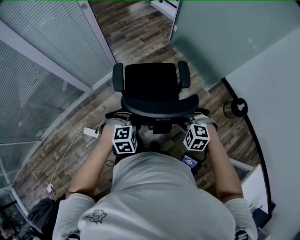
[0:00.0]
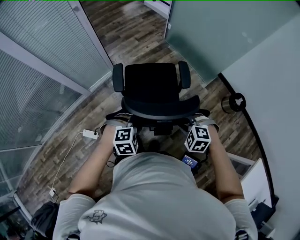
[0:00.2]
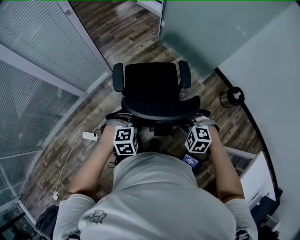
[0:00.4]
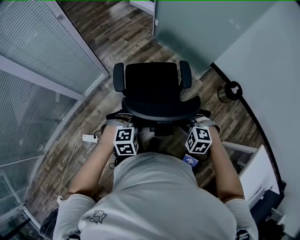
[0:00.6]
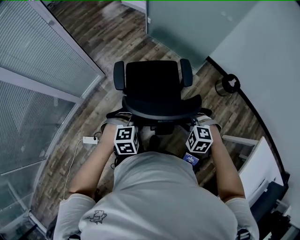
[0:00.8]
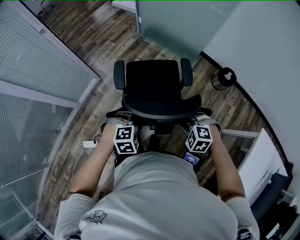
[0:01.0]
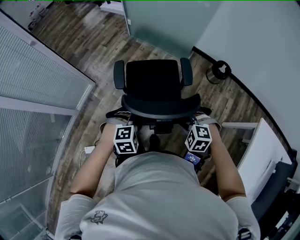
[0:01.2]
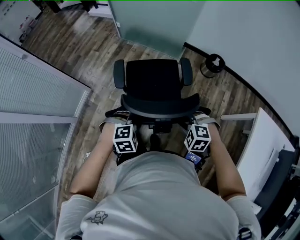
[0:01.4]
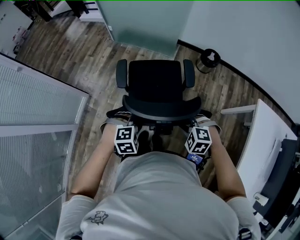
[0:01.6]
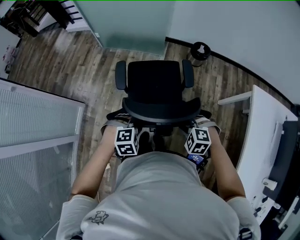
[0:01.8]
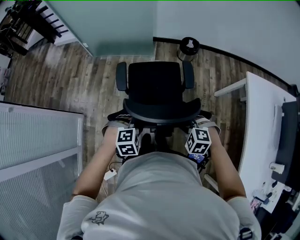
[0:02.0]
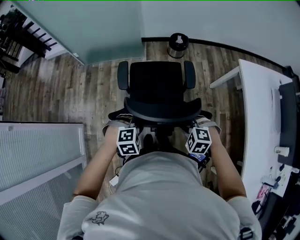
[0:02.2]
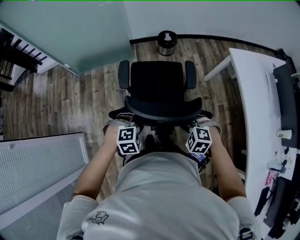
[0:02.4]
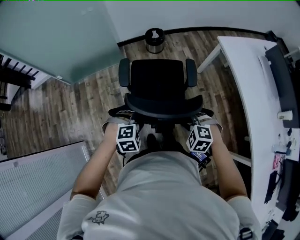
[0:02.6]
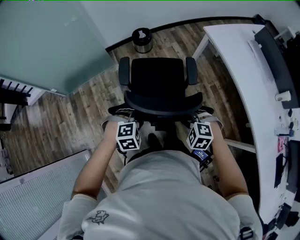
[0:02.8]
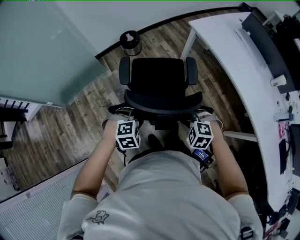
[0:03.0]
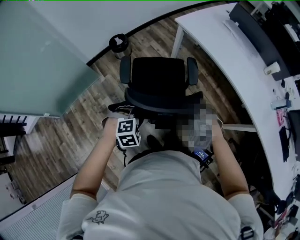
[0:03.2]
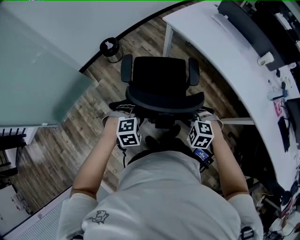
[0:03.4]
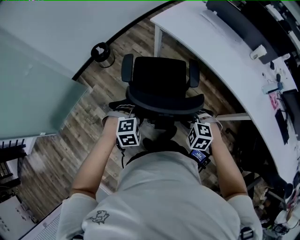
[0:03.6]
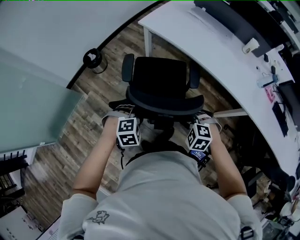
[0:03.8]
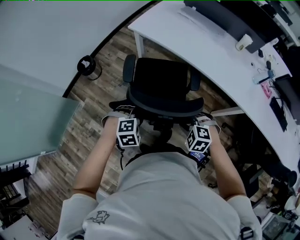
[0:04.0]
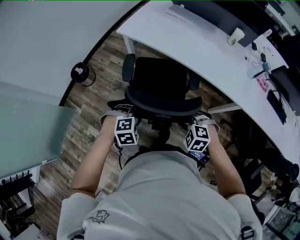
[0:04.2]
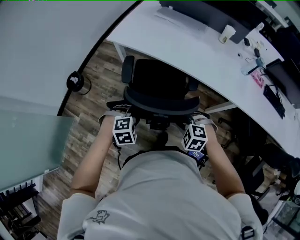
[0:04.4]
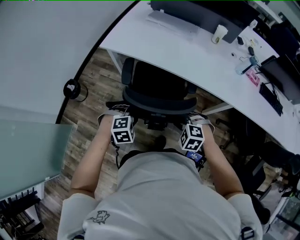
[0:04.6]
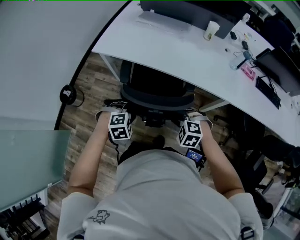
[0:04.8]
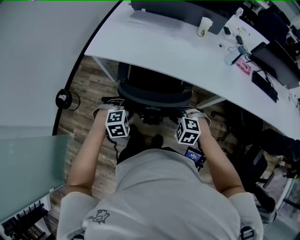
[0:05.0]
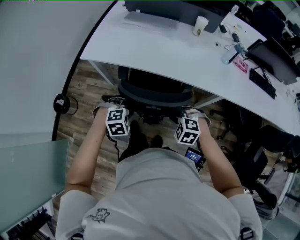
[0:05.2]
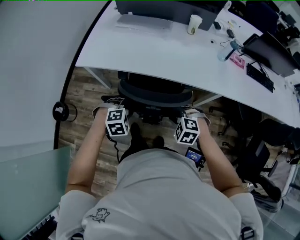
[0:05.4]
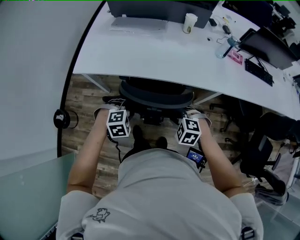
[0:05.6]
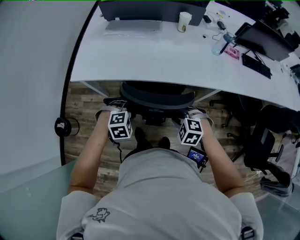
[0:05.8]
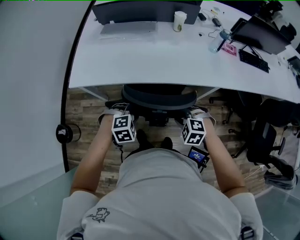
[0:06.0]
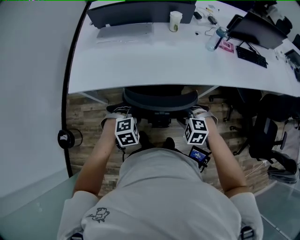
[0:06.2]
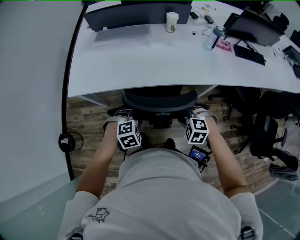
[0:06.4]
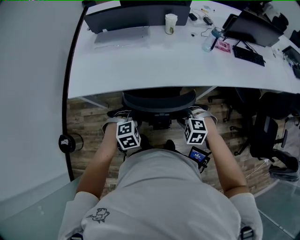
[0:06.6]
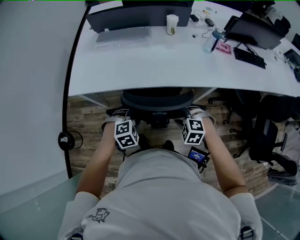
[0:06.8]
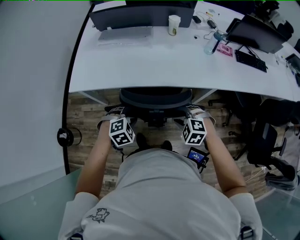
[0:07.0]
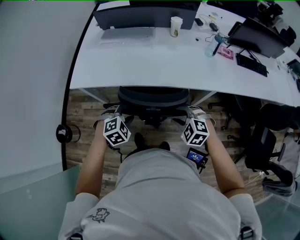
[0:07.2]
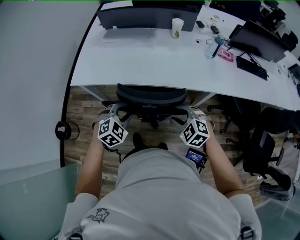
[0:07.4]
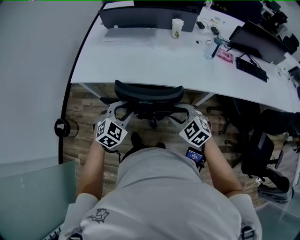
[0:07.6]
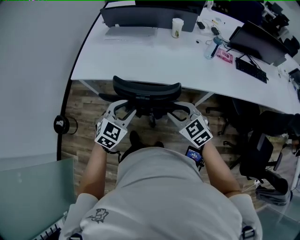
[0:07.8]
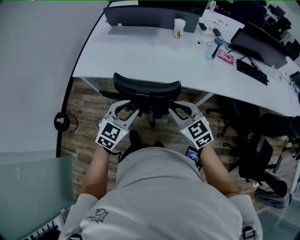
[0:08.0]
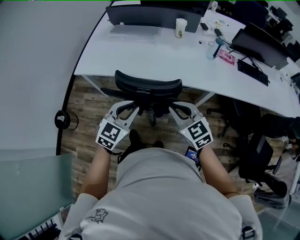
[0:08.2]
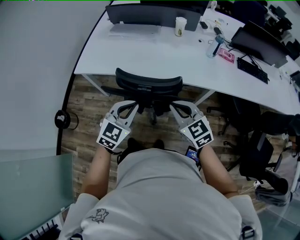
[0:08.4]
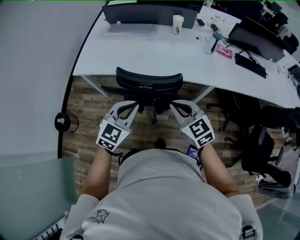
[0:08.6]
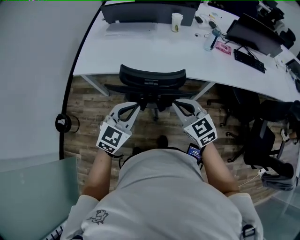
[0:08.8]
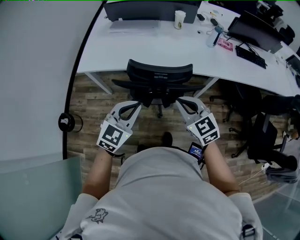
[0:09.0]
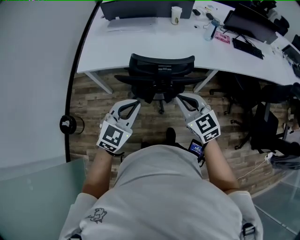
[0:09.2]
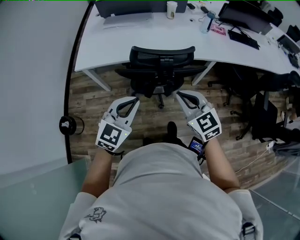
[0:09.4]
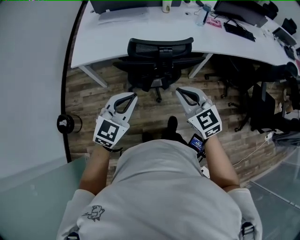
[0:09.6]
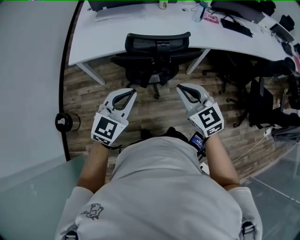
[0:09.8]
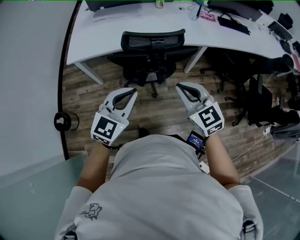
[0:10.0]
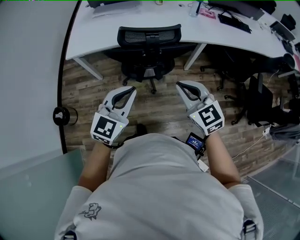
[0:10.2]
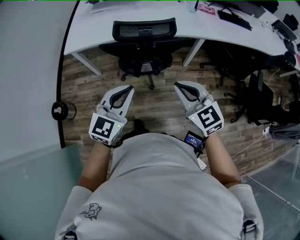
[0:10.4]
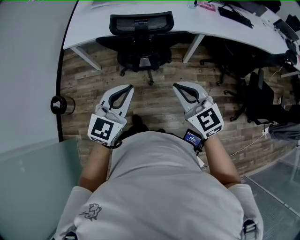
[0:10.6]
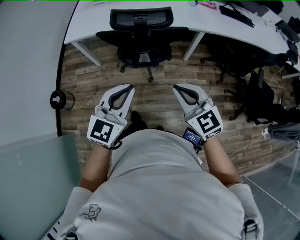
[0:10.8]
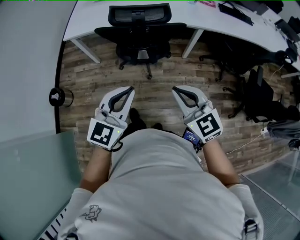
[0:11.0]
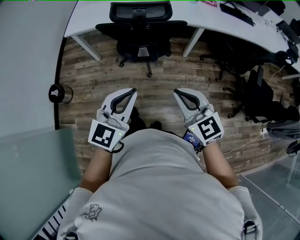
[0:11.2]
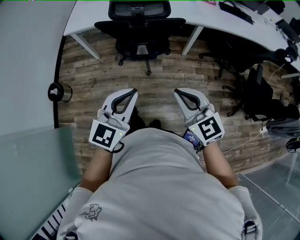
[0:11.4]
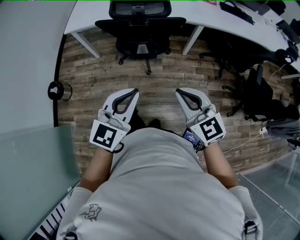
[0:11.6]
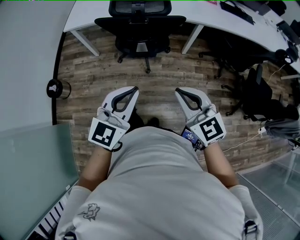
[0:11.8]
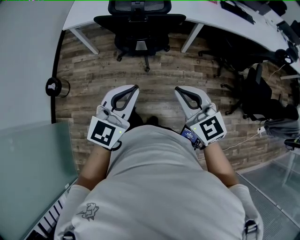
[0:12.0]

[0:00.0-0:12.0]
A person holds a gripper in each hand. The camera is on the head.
0:00.0 to 0:01.6: The left gripper shifts by some 15 cm, and swivels some 30 degrees, while the right gripper ends up approximately 20 cm from where it was, and swivels about 30 degrees.
0:01.6 to 0:03.0: The right gripper changes place by approximately 20 cm, and twists some 50 degrees clockwise, seen from behind, while the left gripper shifts by some 15 cm, and rolls clockwise, seen from behind, by approximately 50 degrees.
0:03.0 to 0:04.4: The left gripper changes place by approximately 35 cm, and turns by approximately 30 degrees. Meanwhile the right gripper shifts by about 30 cm, and swivels roughly 30 degrees.
0:04.4 to 0:06.0: The right gripper ends up approximately 15 cm from where it was, and changes its angle by about 20 degrees. The left gripper changes place by some 20 cm, and changes its angle by roughly 20 degrees.
0:06.0 to 0:07.6: Both grippers move upward and to the right, approximately 10 cm. The left gripper changes its angle by some 40 degrees; the right gripper changes its angle by some 30 degrees.
0:07.6 to 0:09.0: The right gripper heads upward, backward and to the left, covering approximately 15 cm, changes its angle by roughly 20 degrees, and closes up. The left gripper moves backward and upward, about 15 cm, changes its angle by roughly 20 degrees, and closes.
0:09.0 to 0:10.4: Both grippers move backward, about 20 cm.
0:10.4 to 0:12.0: The right gripper is displaced backward by some 15 cm. The left gripper goes some 15 cm backward and to the right.

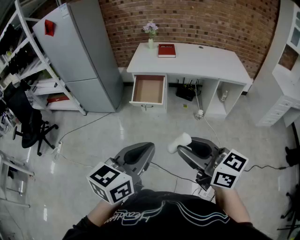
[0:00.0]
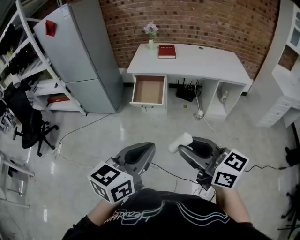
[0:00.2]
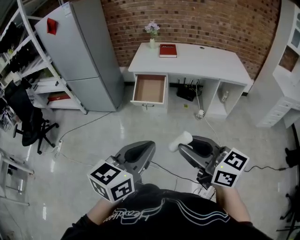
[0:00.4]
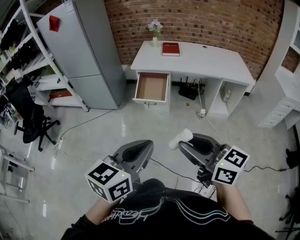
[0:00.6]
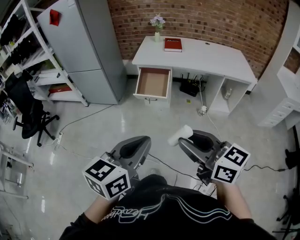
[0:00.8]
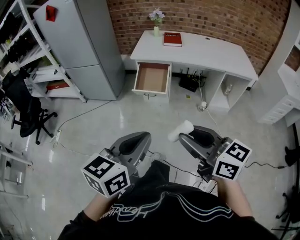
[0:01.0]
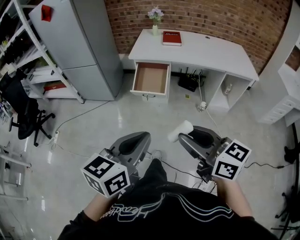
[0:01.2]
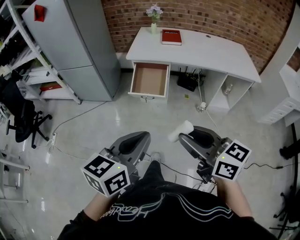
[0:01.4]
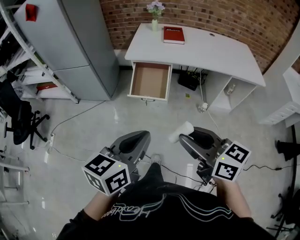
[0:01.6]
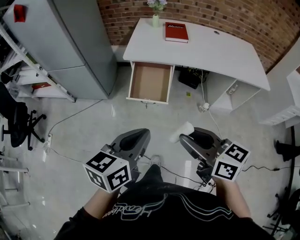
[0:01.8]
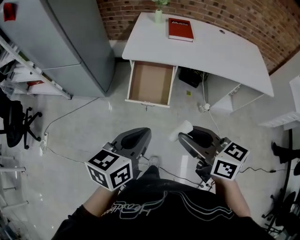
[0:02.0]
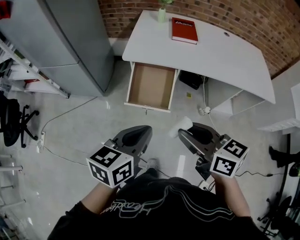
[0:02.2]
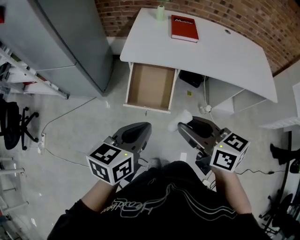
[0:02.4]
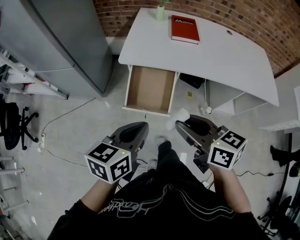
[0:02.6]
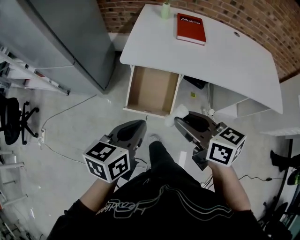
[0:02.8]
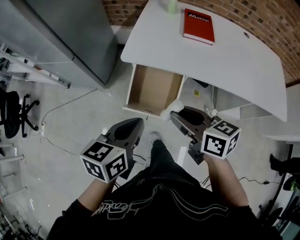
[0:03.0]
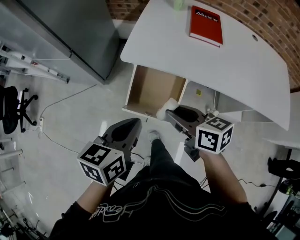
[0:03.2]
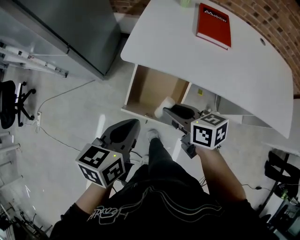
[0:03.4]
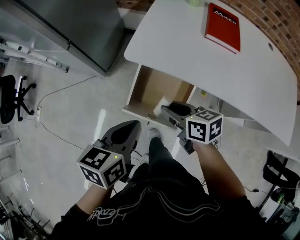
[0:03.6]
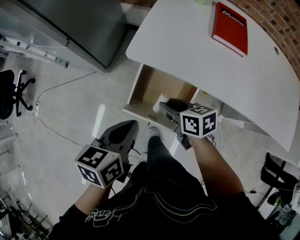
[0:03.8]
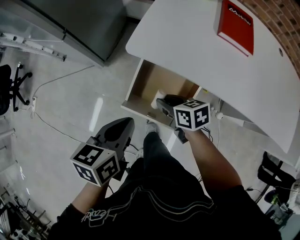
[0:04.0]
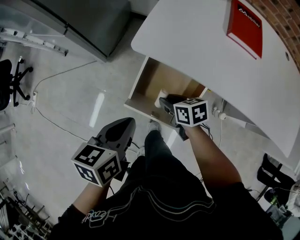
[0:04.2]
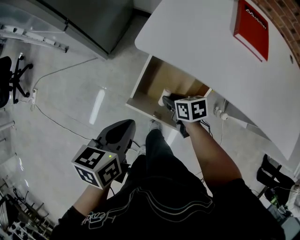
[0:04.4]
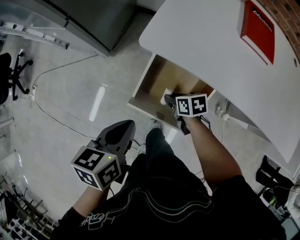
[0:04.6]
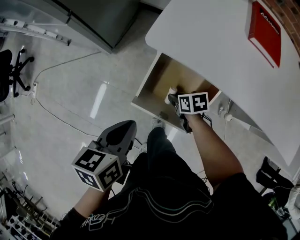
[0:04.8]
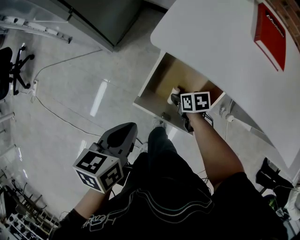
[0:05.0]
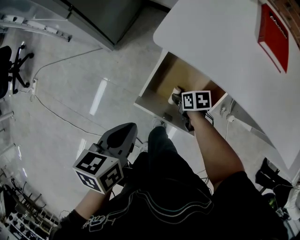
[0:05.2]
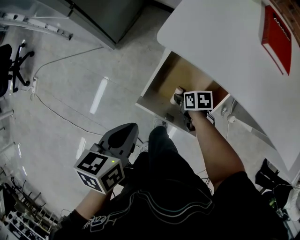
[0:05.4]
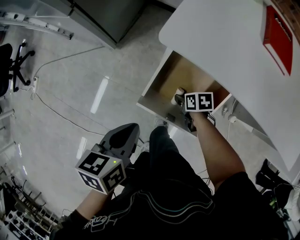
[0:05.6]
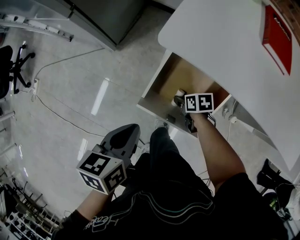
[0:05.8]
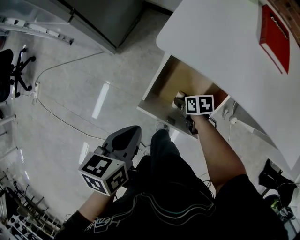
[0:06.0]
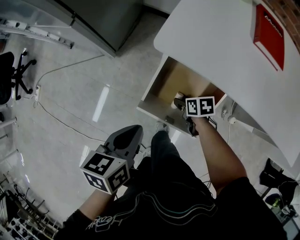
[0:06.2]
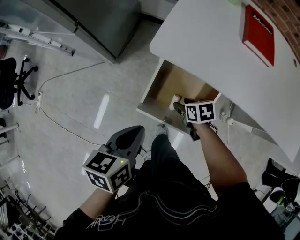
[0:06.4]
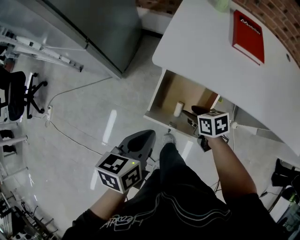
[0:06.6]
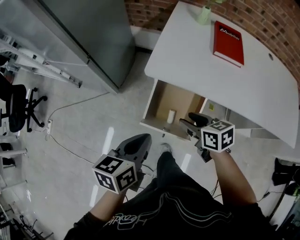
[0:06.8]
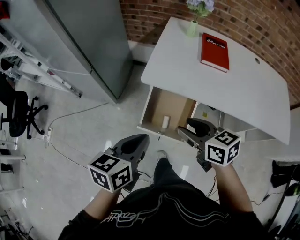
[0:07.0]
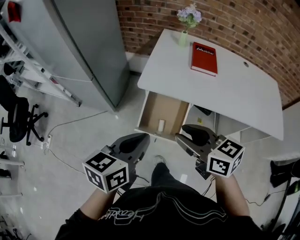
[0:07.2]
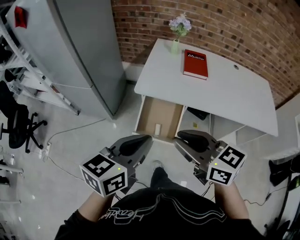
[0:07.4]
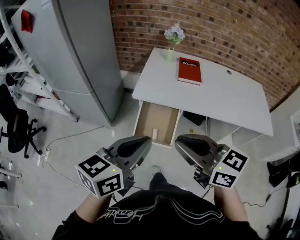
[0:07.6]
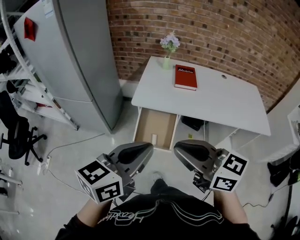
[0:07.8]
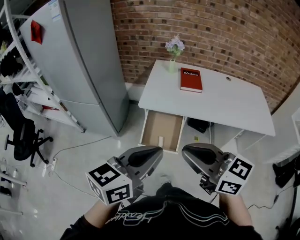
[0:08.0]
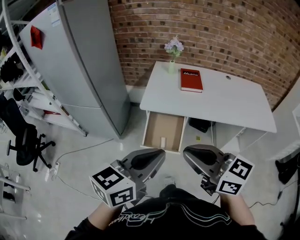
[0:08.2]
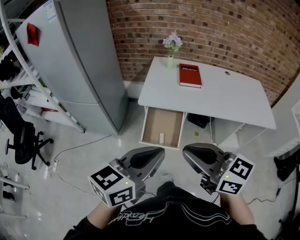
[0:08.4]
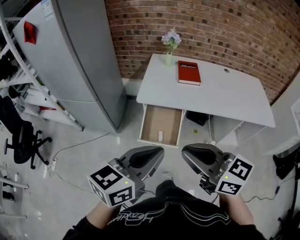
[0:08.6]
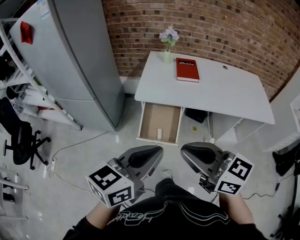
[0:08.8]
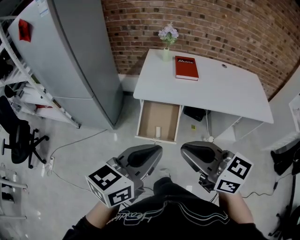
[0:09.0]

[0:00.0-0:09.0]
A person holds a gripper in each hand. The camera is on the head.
0:00.0 to 0:01.6: Both grippers travel together forward, some 20 cm.
0:01.6 to 0:03.0: Both grippers travel together forward, roughly 40 cm.
0:03.0 to 0:04.4: The right gripper shifts some 40 cm downward and forward, and swivels roughly 30 degrees. The left gripper heads downward and forward, covering roughly 20 cm, and swivels about 20 degrees.
0:04.4 to 0:06.0: The left gripper goes approximately 5 cm downward. The right gripper goes some 10 cm downward.
0:06.0 to 0:07.6: The right gripper goes roughly 70 cm upward and backward, tips its fingers upward by roughly 50 degrees, and closes, while the left gripper shifts about 50 cm upward and backward, and points its fingers some 30 degrees further upward.
0:07.6 to 0:09.0: Both grippers move backward, some 5 cm.

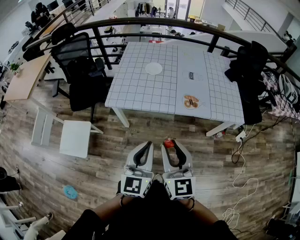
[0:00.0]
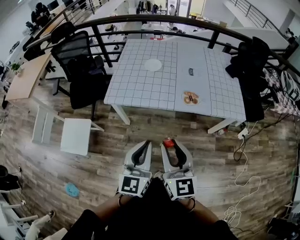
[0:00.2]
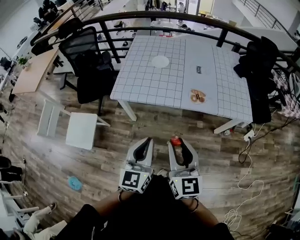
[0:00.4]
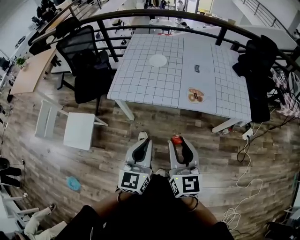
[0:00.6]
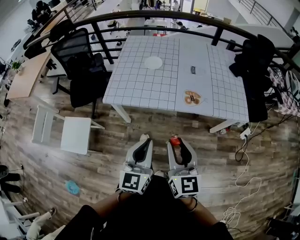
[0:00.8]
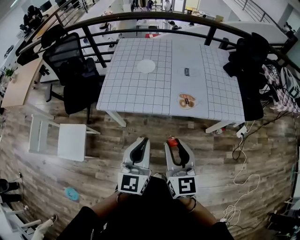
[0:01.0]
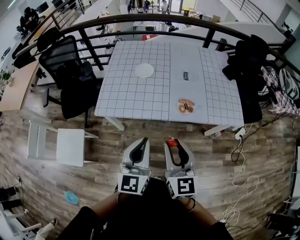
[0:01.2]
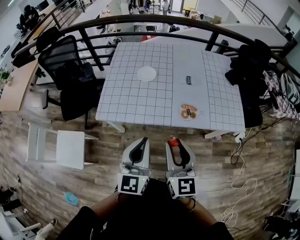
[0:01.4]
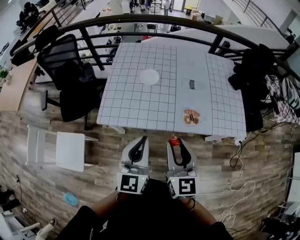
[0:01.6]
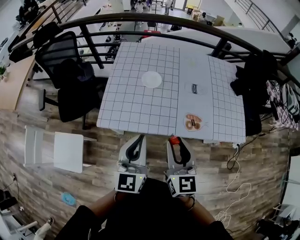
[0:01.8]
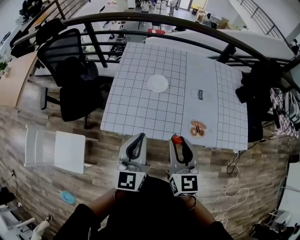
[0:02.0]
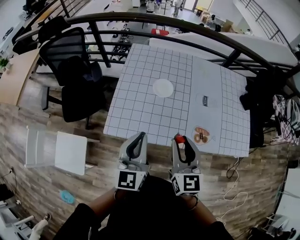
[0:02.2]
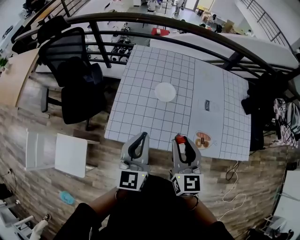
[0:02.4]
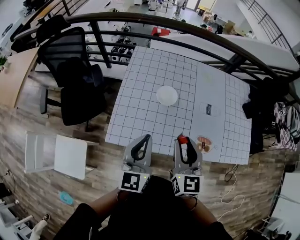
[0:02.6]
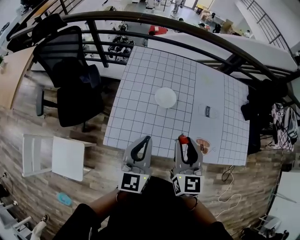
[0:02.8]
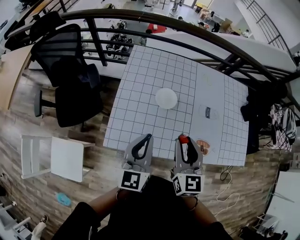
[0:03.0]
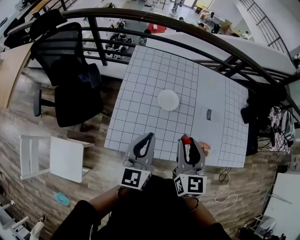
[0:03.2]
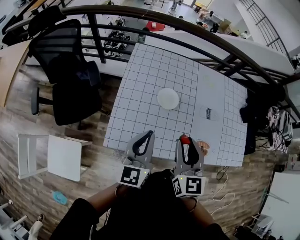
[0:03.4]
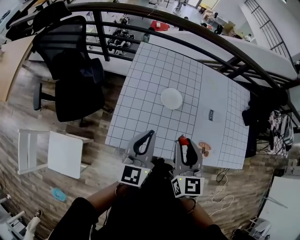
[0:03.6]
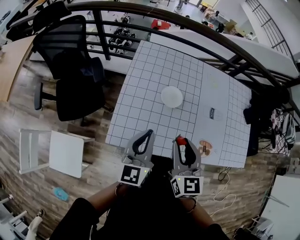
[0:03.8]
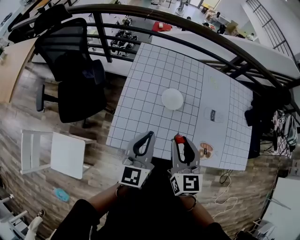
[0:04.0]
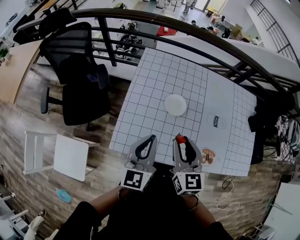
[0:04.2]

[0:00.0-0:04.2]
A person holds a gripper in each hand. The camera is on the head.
0:00.0 to 0:01.4: The grippers both shift forward by about 15 cm.
0:01.4 to 0:02.8: The grippers both shift forward and to the left by roughly 30 cm.
0:02.8 to 0:04.2: The left gripper shifts by approximately 5 cm. The right gripper moves to the left, some 5 cm.
